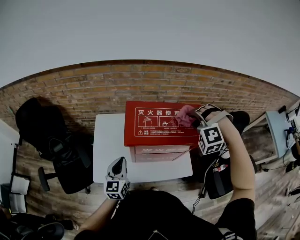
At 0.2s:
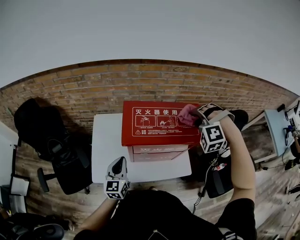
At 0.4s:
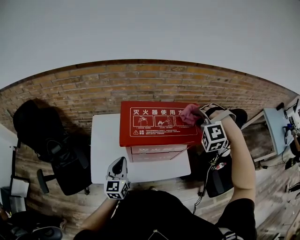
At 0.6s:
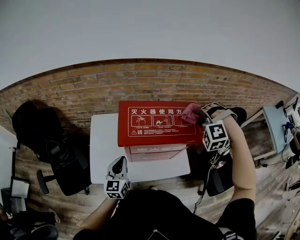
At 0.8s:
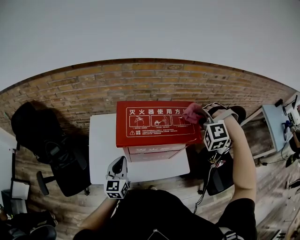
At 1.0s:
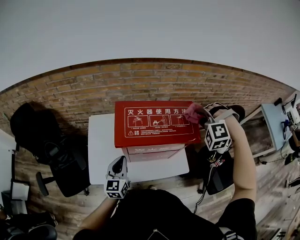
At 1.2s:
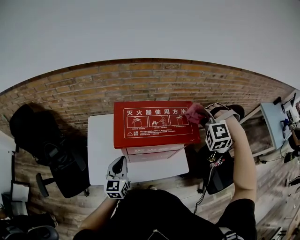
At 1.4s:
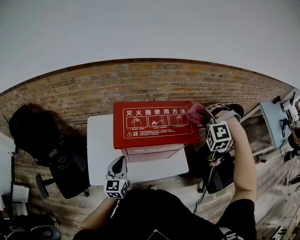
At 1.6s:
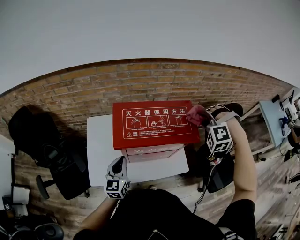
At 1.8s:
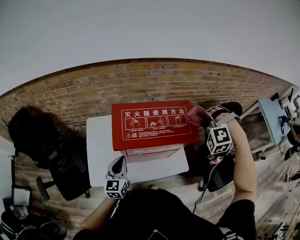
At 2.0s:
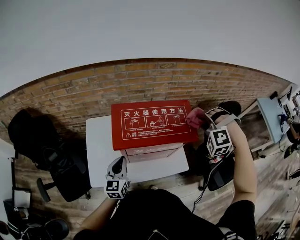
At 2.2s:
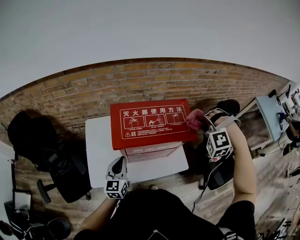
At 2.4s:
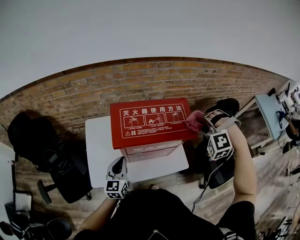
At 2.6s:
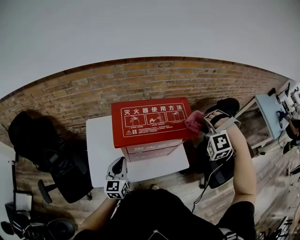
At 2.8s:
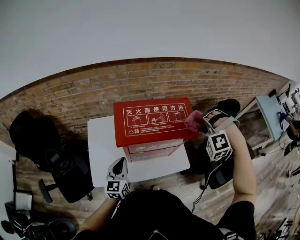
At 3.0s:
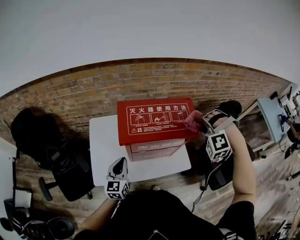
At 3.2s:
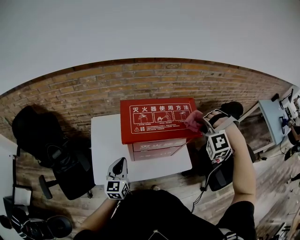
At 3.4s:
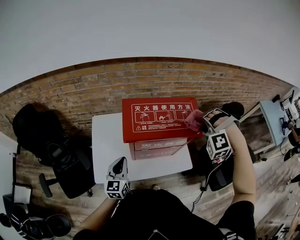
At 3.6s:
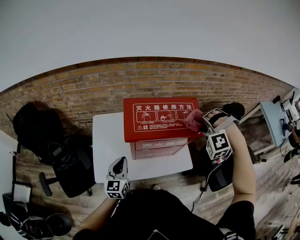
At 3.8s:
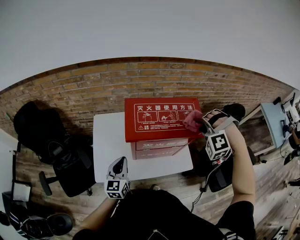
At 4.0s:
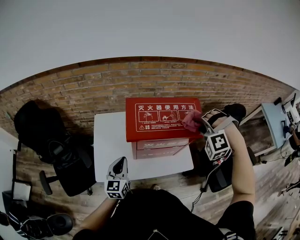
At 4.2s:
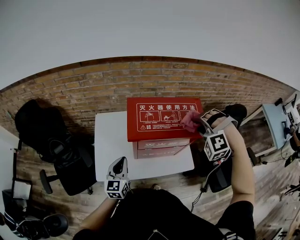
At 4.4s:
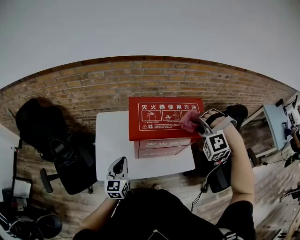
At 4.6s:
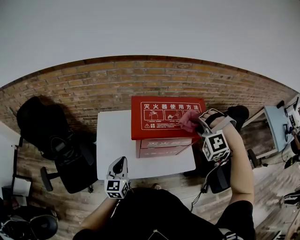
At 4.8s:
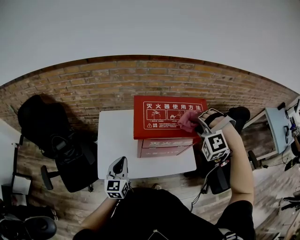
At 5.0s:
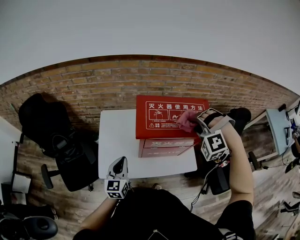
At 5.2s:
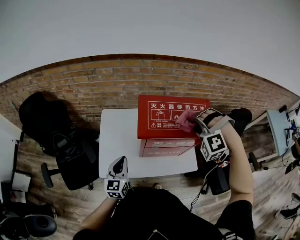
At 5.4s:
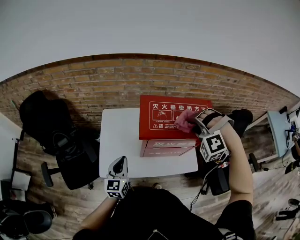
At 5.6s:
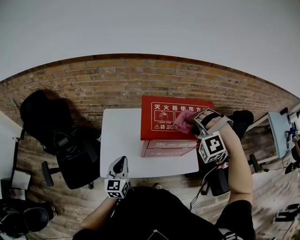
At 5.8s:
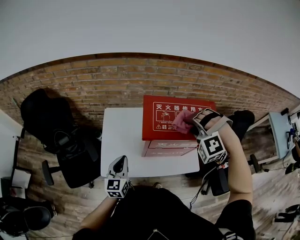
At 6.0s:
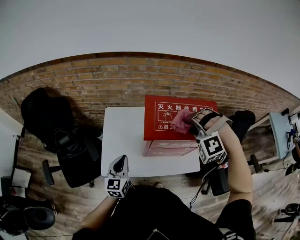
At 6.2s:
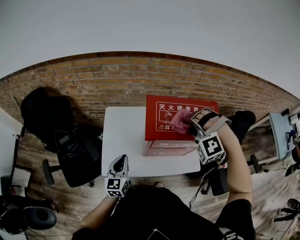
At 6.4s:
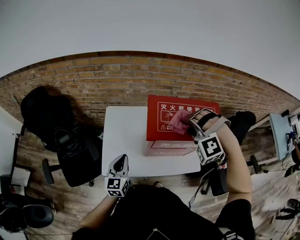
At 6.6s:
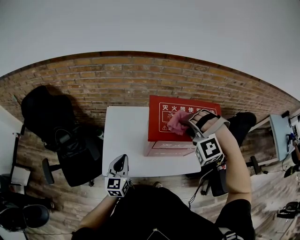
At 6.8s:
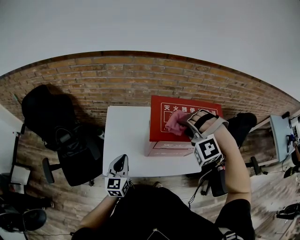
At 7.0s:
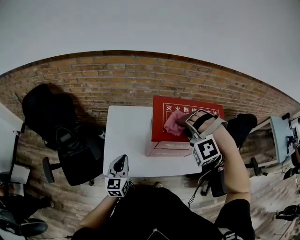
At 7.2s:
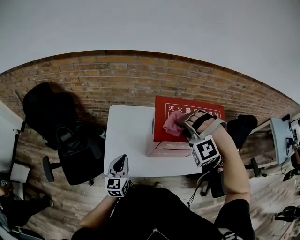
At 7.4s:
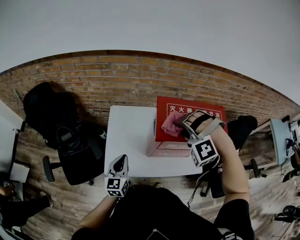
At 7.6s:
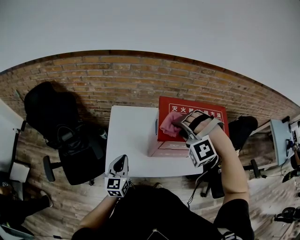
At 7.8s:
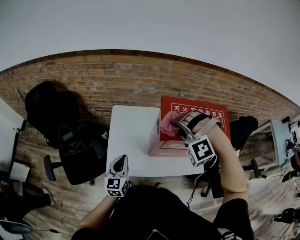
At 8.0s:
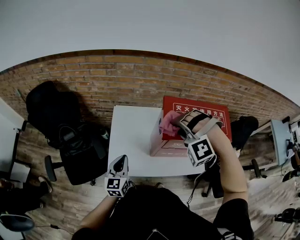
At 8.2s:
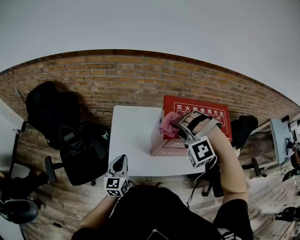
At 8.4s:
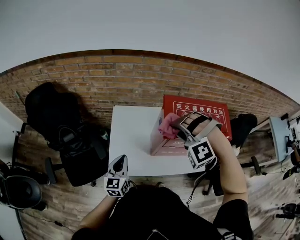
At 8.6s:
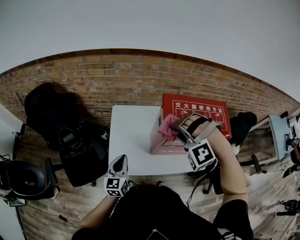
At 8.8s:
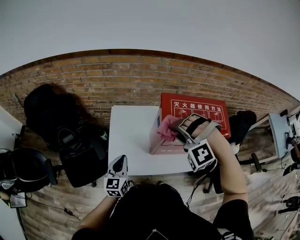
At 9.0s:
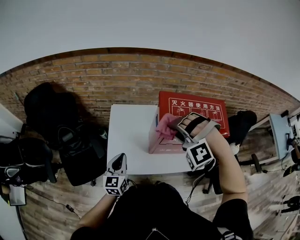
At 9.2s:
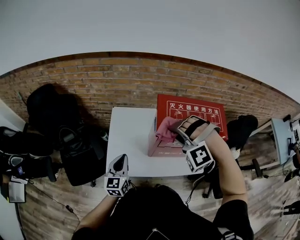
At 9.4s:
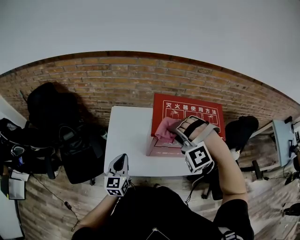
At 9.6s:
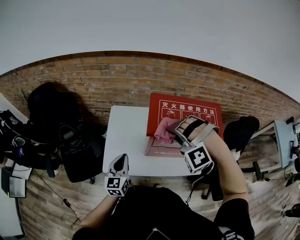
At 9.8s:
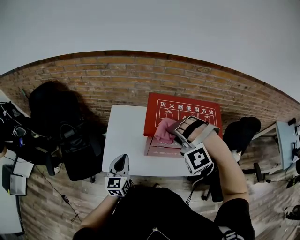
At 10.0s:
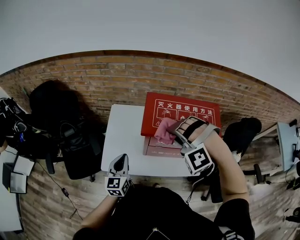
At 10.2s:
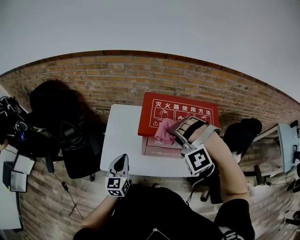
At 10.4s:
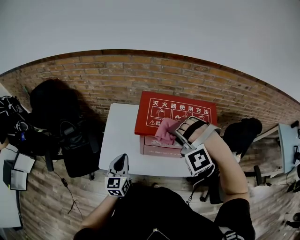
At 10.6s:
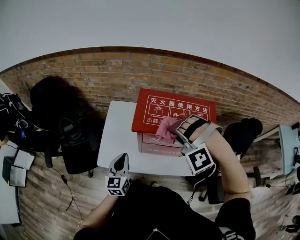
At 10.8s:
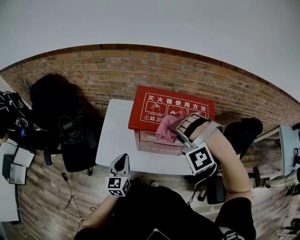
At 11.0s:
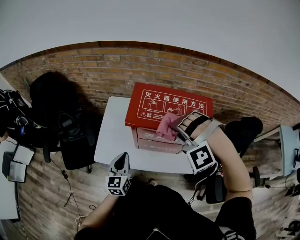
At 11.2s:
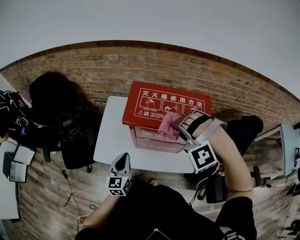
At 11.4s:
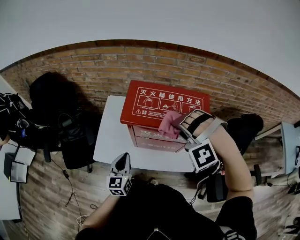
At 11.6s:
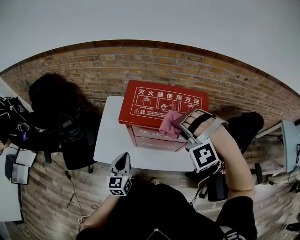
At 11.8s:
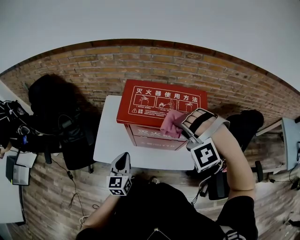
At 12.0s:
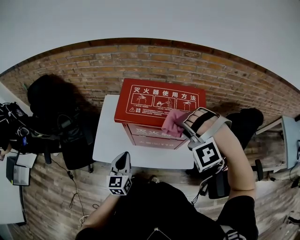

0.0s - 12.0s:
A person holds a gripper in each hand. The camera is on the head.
9.0s - 10.4s: The left gripper moves roughly 10 cm.
10.4s - 12.0s: The left gripper shifts by some 10 cm.

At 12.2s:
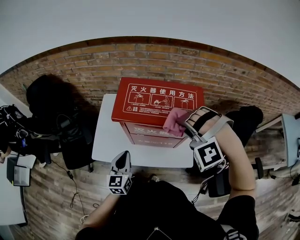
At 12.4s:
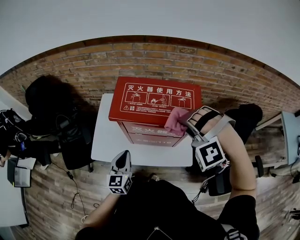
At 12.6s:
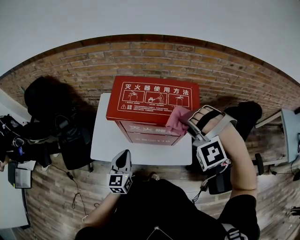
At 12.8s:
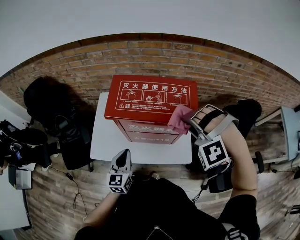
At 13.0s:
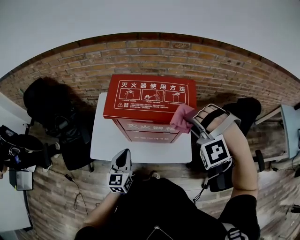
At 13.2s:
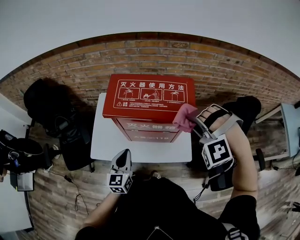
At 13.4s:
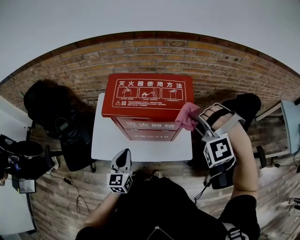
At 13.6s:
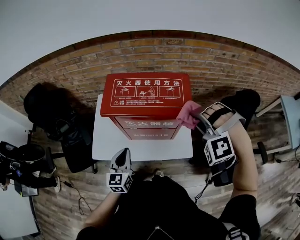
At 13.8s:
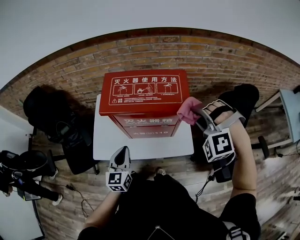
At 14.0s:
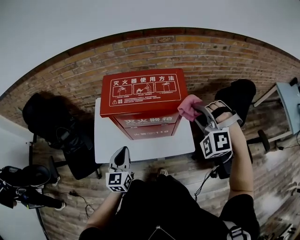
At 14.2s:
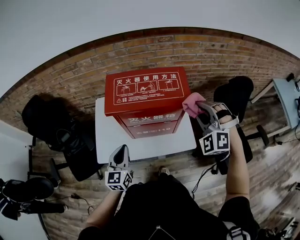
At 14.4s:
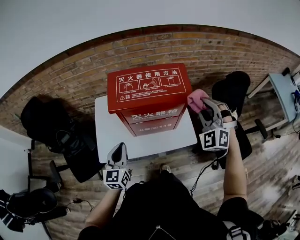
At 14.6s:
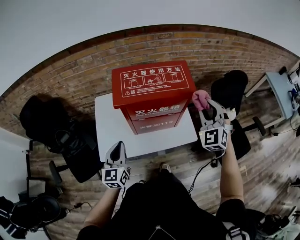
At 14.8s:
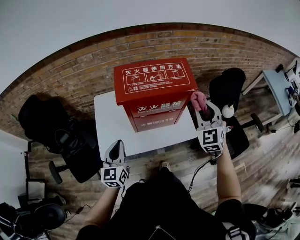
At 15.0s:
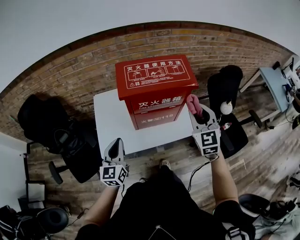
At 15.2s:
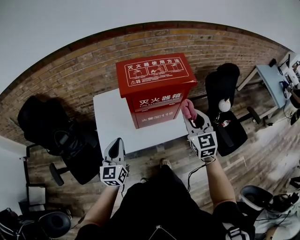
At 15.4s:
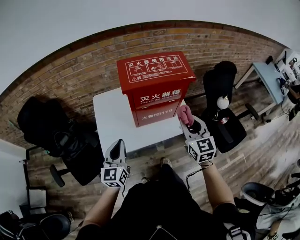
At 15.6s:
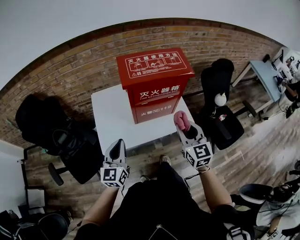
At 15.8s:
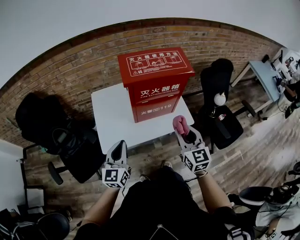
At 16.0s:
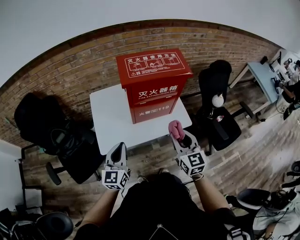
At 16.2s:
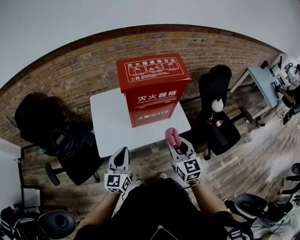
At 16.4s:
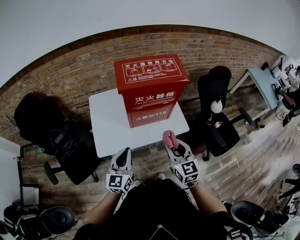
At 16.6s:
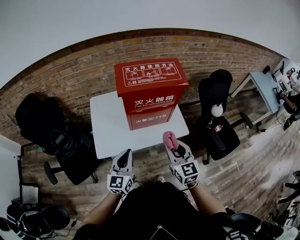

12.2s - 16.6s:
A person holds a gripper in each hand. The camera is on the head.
13.6s - 15.2s: The left gripper changes place by roughly 15 cm.
15.2s - 16.6s: The left gripper ends up roughly 10 cm from where it was.

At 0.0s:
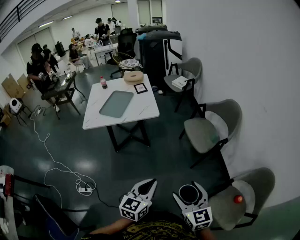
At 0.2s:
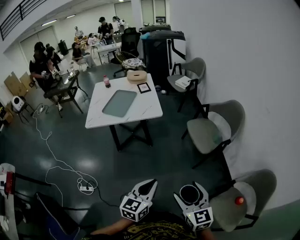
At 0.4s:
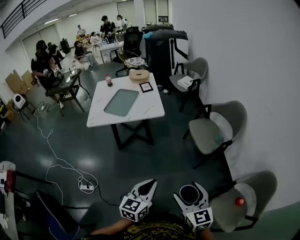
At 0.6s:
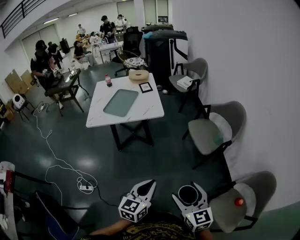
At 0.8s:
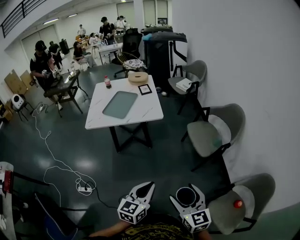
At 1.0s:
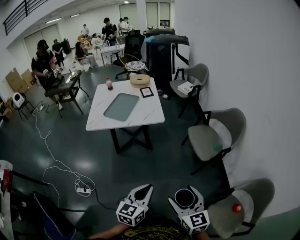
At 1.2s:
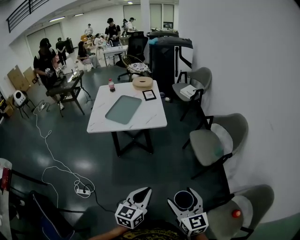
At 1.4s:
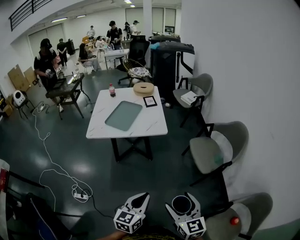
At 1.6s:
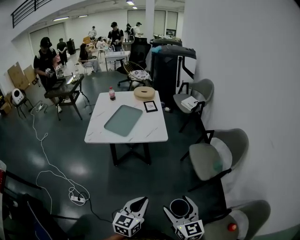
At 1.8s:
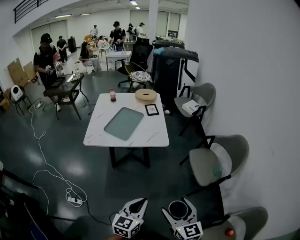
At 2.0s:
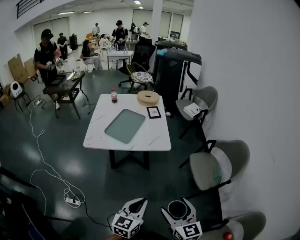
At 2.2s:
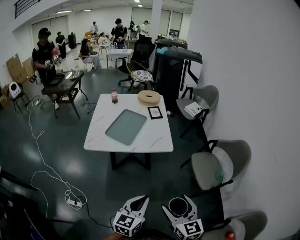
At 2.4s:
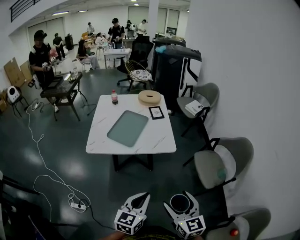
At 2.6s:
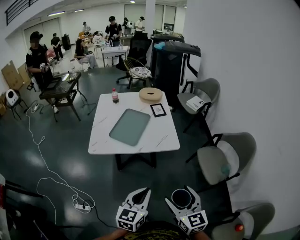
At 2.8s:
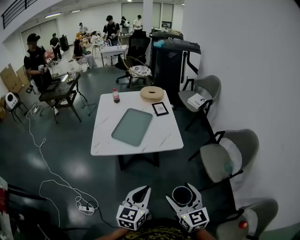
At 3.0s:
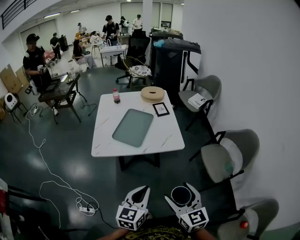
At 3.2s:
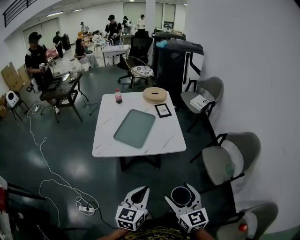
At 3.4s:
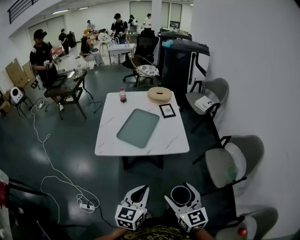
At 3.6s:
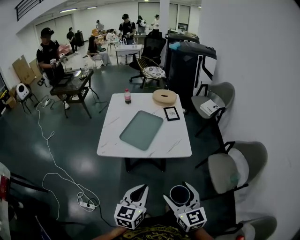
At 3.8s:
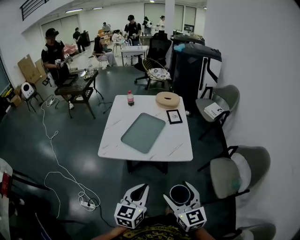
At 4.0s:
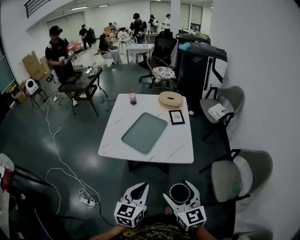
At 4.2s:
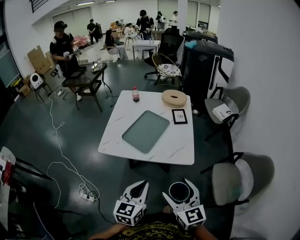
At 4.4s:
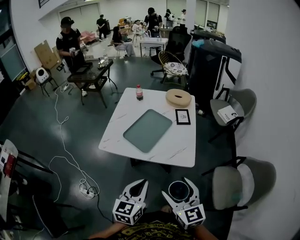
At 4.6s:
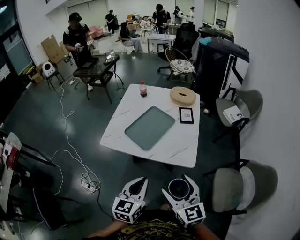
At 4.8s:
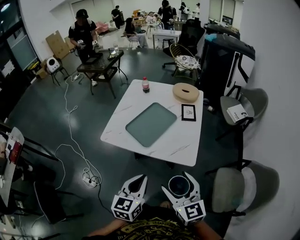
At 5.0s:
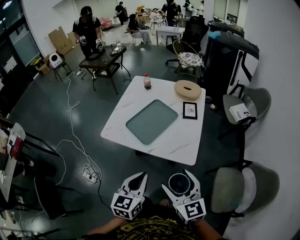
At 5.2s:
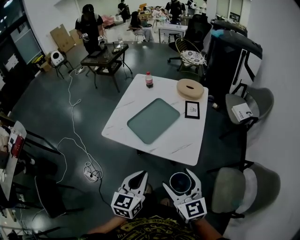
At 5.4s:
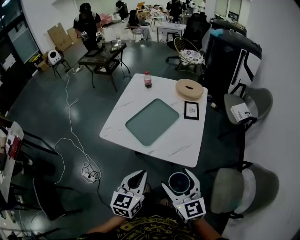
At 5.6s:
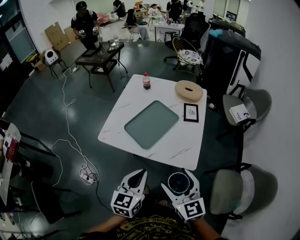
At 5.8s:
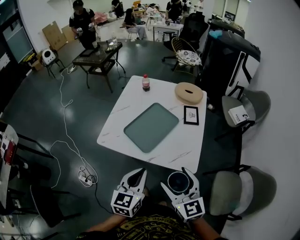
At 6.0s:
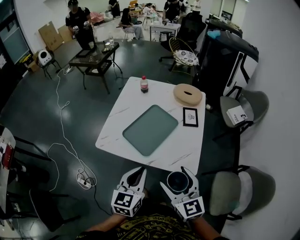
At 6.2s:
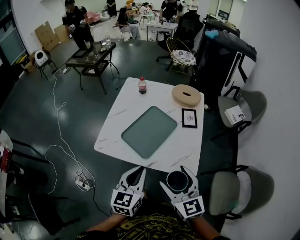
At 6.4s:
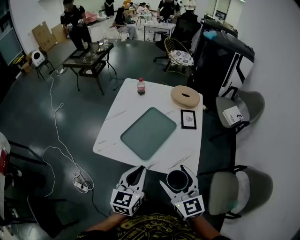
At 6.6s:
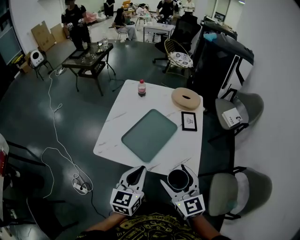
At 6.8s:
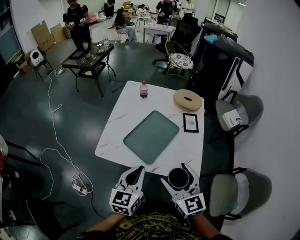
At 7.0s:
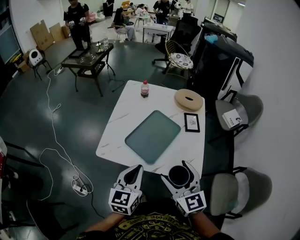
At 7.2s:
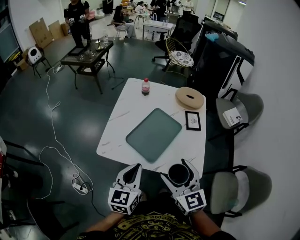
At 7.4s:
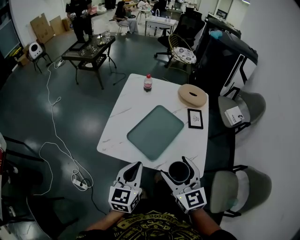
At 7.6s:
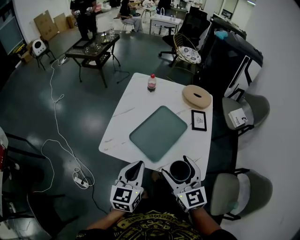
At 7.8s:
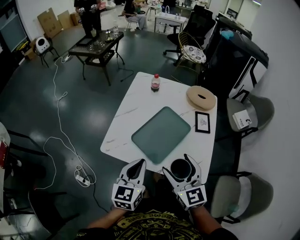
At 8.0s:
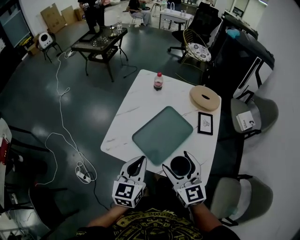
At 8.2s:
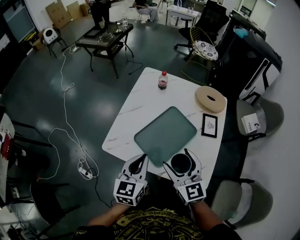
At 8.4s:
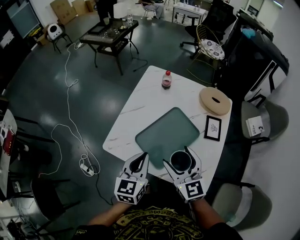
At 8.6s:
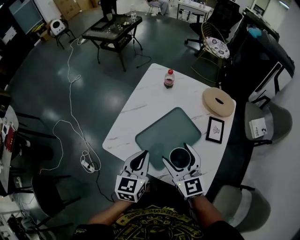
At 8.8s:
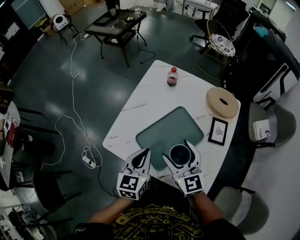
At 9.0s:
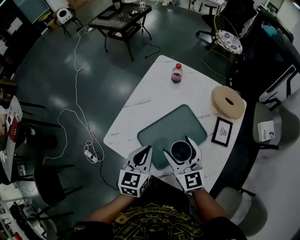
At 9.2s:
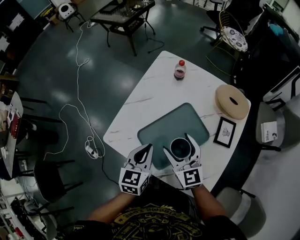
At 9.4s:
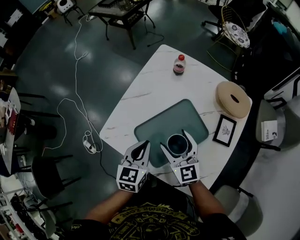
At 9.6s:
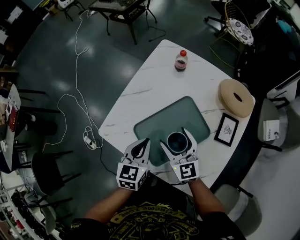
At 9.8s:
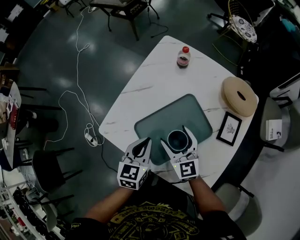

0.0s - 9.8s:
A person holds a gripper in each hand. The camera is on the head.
0.0s - 1.4s: The left gripper shifts approximately 5 cm to the left, while the right gripper shifts approximately 10 cm forward and to the left.
1.4s - 2.8s: Both grippers move forward and to the left, about 25 cm.
2.8s - 4.2s: The grippers both shift forward by approximately 10 cm.
4.2s - 5.6s: Both grippers move forward, about 10 cm.
5.6s - 7.0s: Both grippers travel together forward and to the left, roughly 15 cm.
7.0s - 8.4s: Both grippers move forward, about 15 cm.
8.4s - 9.8s: Both grippers travel together downward and forward, some 15 cm.
